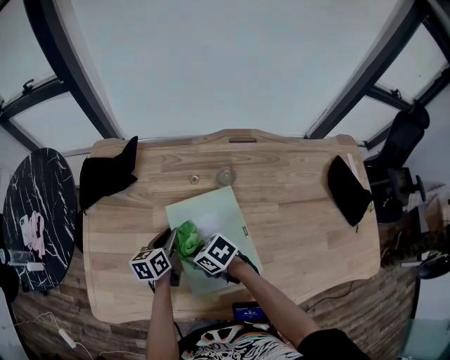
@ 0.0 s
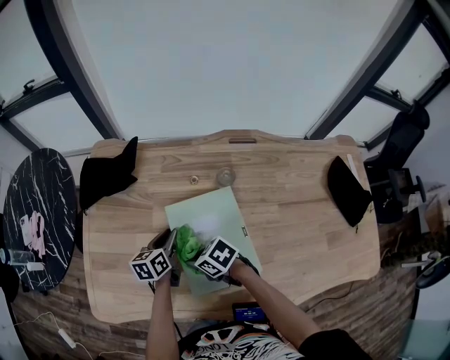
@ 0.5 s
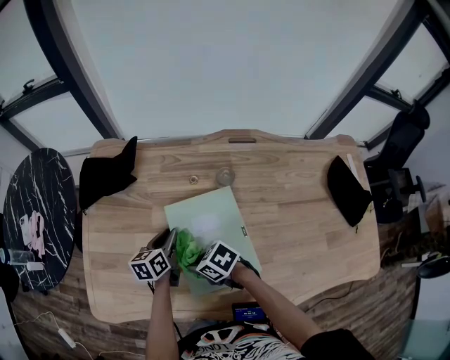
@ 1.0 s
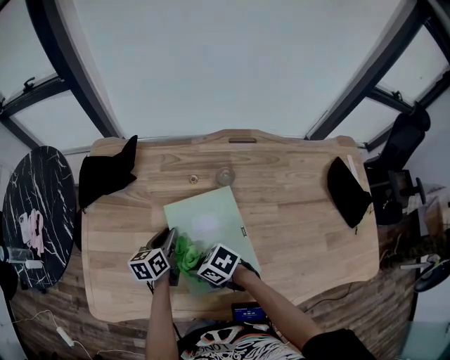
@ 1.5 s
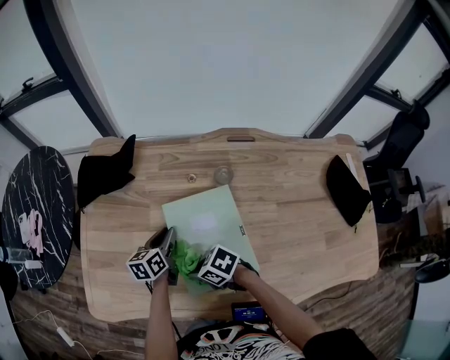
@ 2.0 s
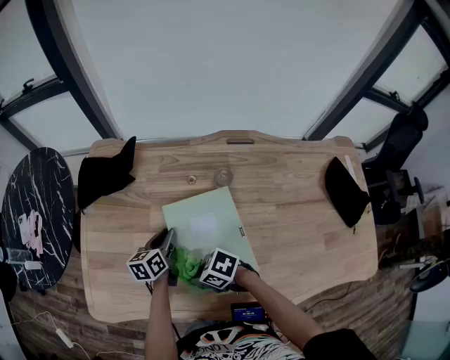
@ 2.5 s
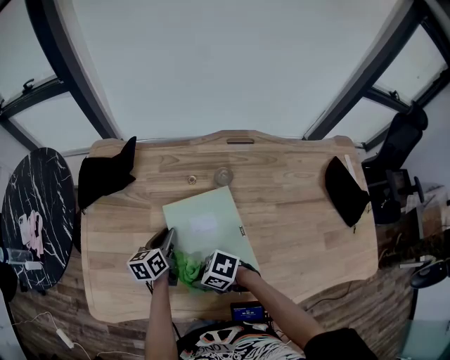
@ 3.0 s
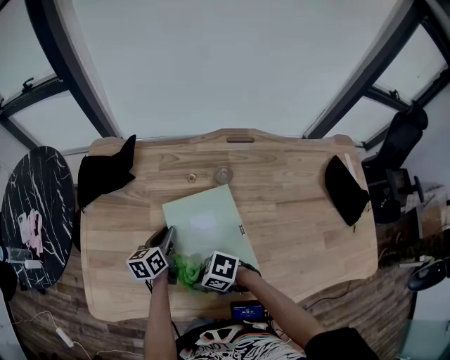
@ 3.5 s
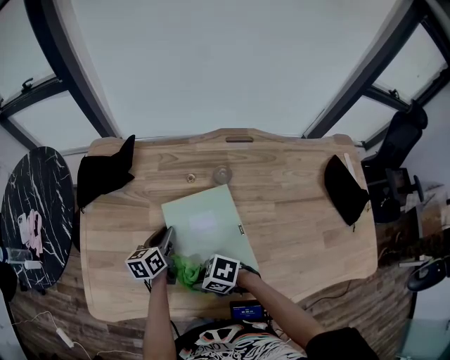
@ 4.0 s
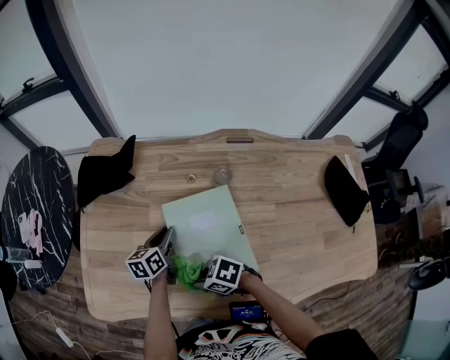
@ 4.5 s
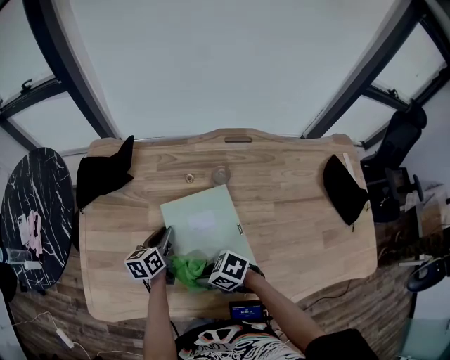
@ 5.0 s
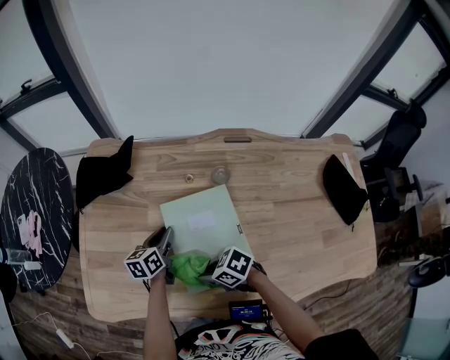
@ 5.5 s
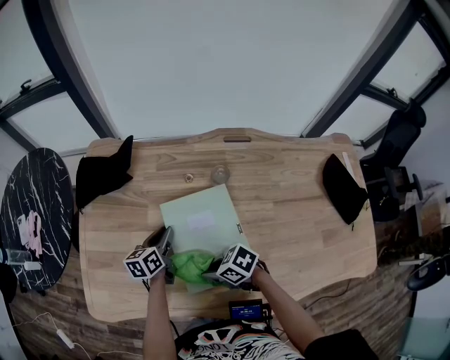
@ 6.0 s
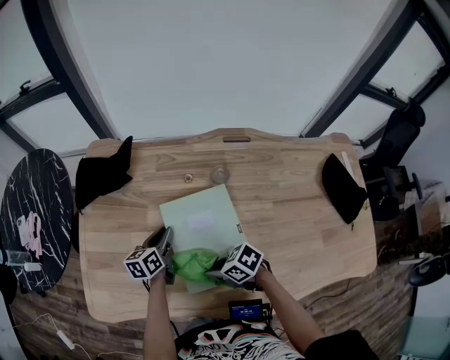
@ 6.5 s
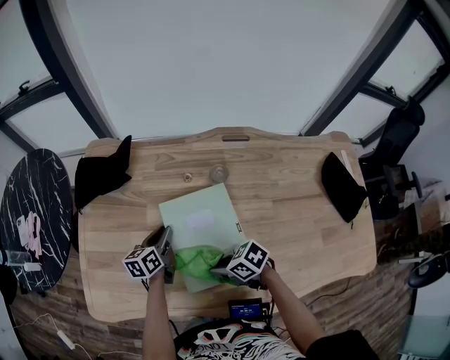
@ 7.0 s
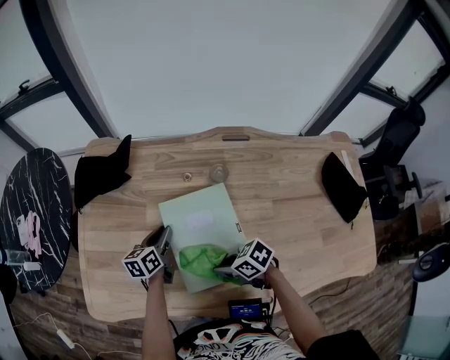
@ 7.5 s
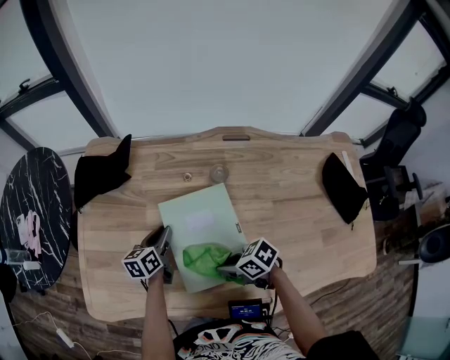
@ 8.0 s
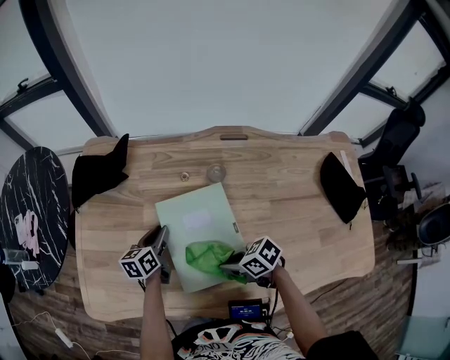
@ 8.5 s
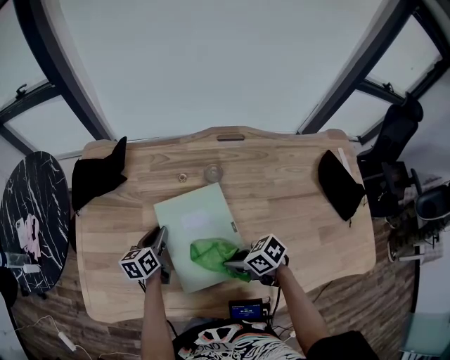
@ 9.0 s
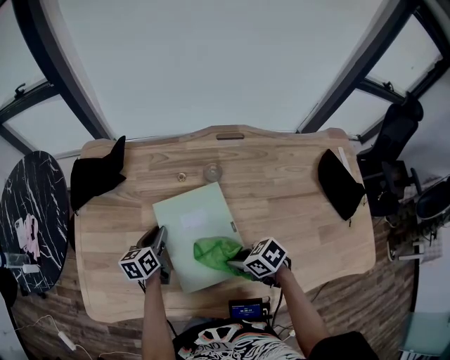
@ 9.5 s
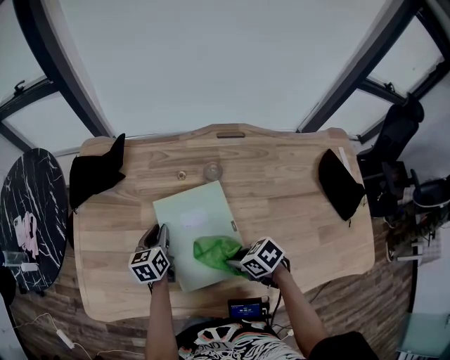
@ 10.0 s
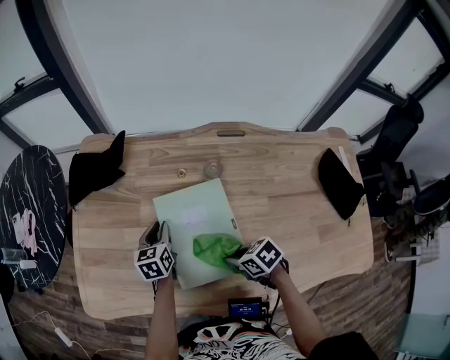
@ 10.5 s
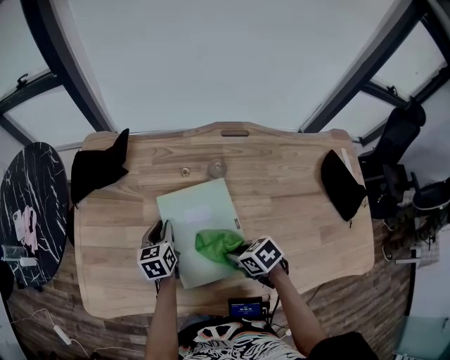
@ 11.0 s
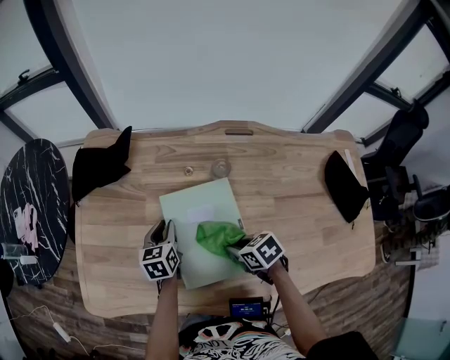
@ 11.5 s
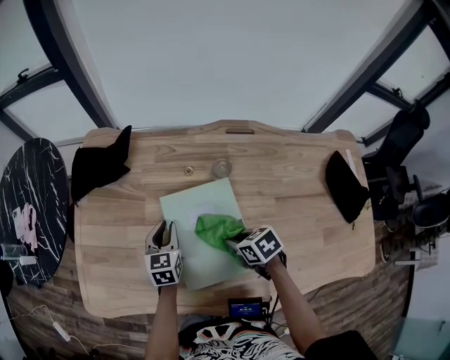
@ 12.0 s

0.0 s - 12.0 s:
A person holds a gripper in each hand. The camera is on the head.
0.0 s - 2.0 s: The right gripper moves about 5 cm.
2.0 s - 4.0 s: There are only small adjustments of the grippers.
4.0 s - 6.0 s: The right gripper ends up about 5 cm from where it was.
6.0 s - 8.0 s: The right gripper shifts by approximately 5 cm.
8.0 s - 10.0 s: The right gripper changes place by some 5 cm.
10.0 s - 12.0 s: The right gripper heads forward, covering about 5 cm.

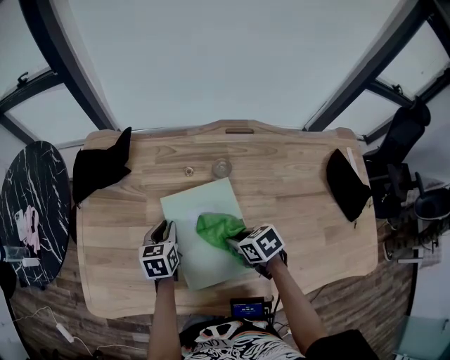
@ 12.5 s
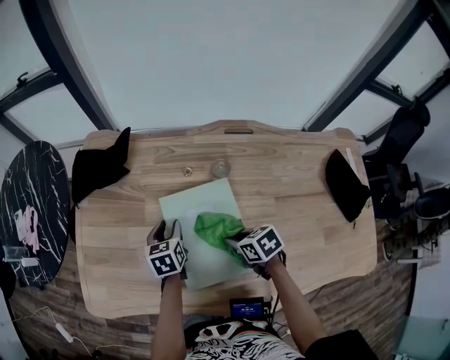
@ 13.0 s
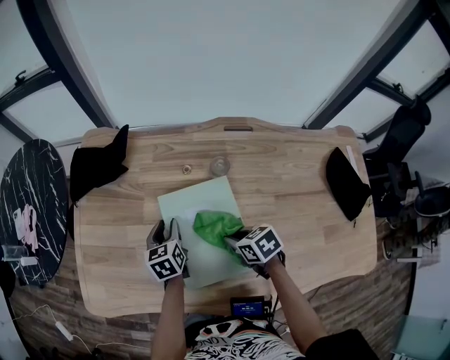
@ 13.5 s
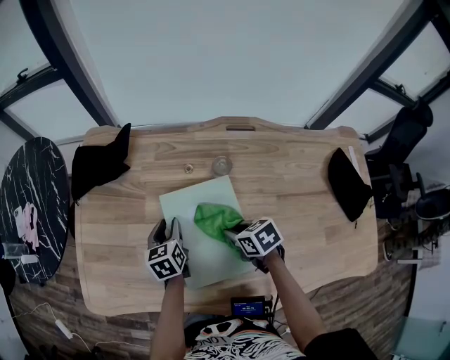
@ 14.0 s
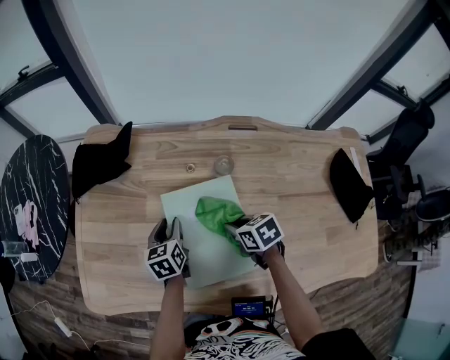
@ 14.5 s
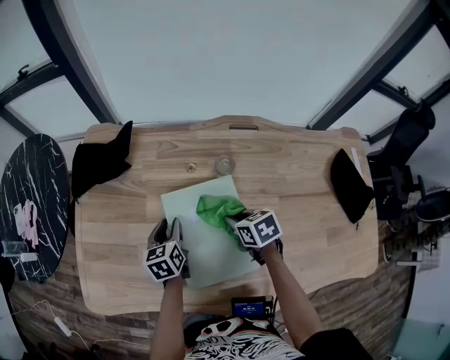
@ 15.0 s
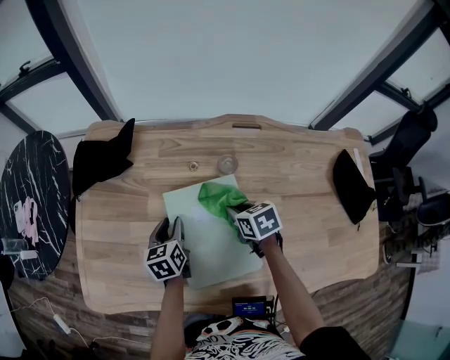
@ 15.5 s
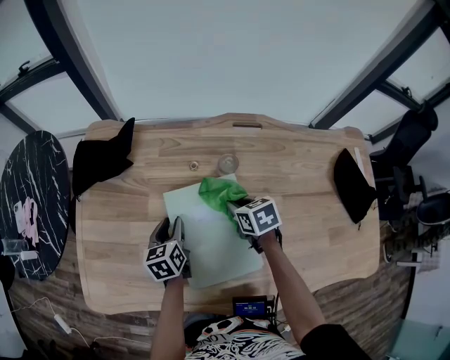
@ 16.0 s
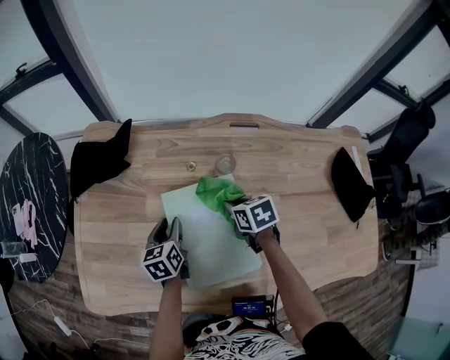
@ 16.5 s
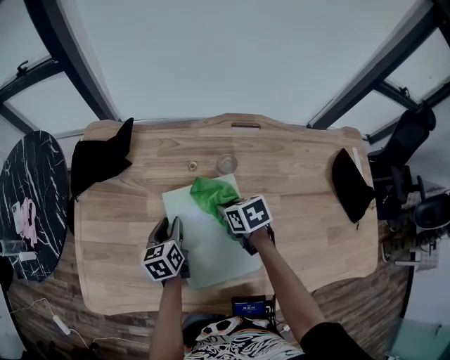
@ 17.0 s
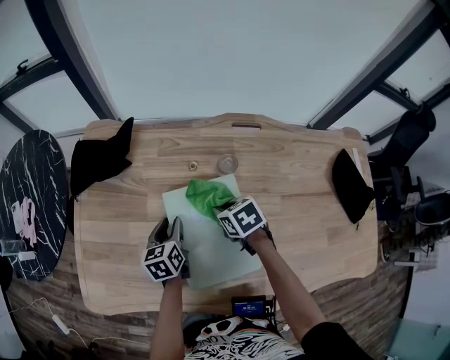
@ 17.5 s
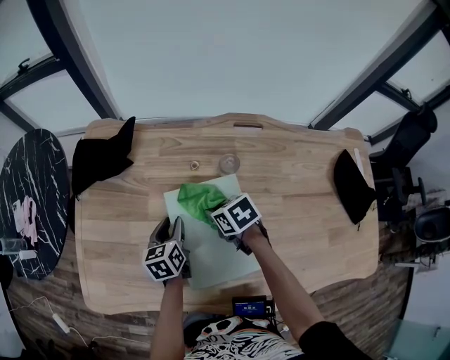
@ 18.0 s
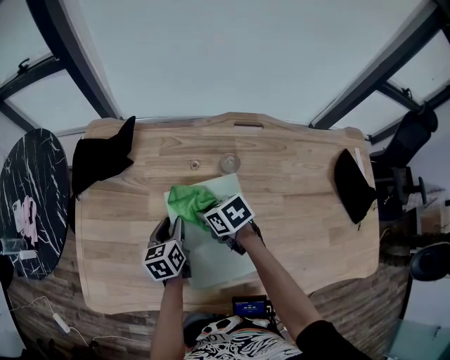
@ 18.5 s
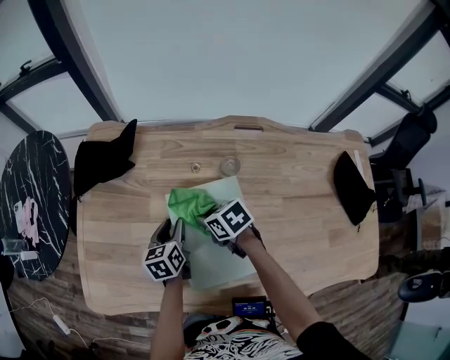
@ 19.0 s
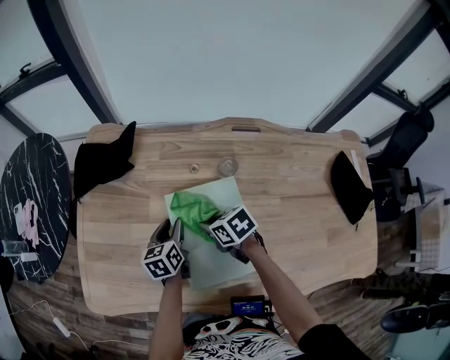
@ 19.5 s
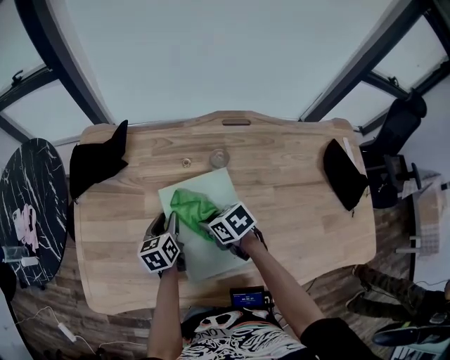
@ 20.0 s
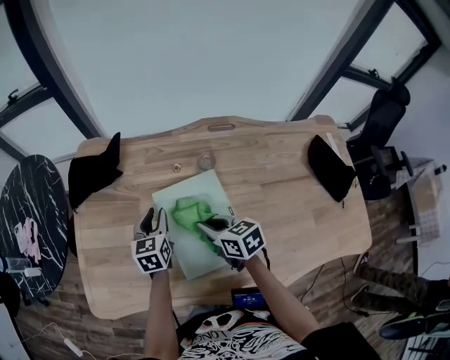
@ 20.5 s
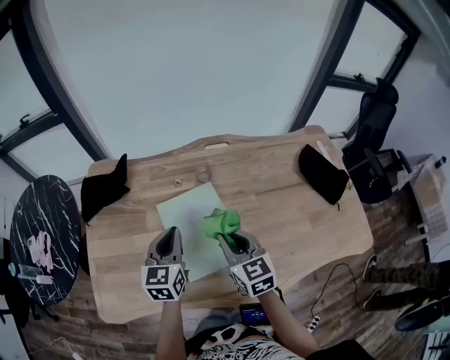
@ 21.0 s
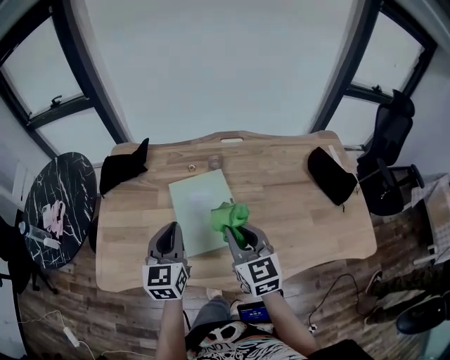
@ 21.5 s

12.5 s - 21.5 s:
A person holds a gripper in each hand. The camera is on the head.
12.5 s - 14.5 s: The grippers move only a little.
14.5 s - 17.0 s: The right gripper moves forward, approximately 5 cm.
17.0 s - 19.5 s: The right gripper is displaced to the left by approximately 10 cm.
19.5 s - 21.5 s: Both grippers move upward, some 20 cm. The left gripper changes its angle by roughly 40 degrees, and closes up, while the right gripper tilts its fingers some 30 degrees upward.

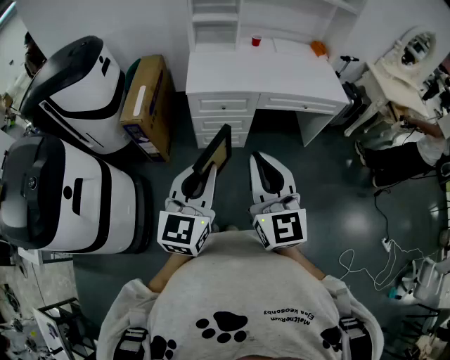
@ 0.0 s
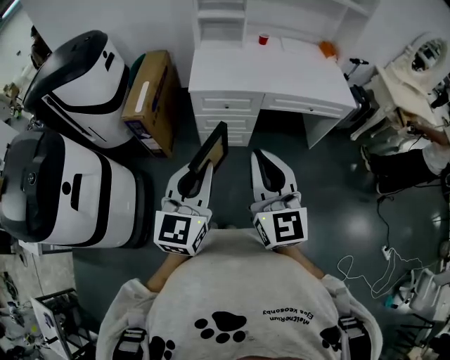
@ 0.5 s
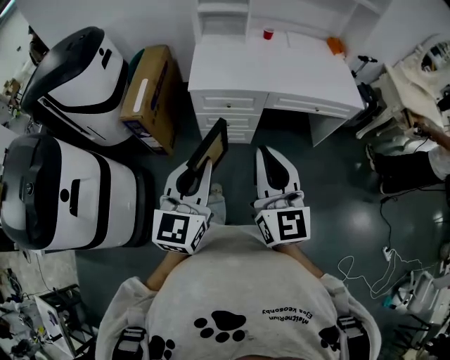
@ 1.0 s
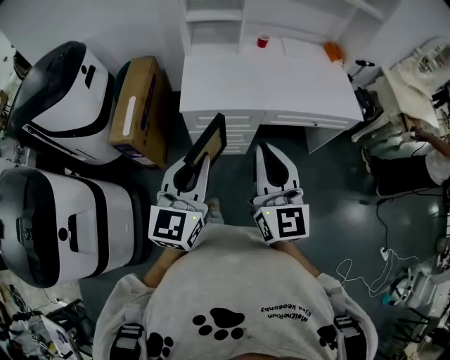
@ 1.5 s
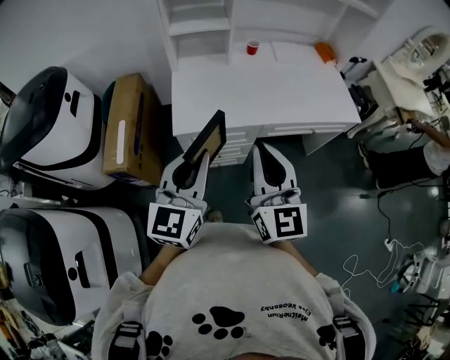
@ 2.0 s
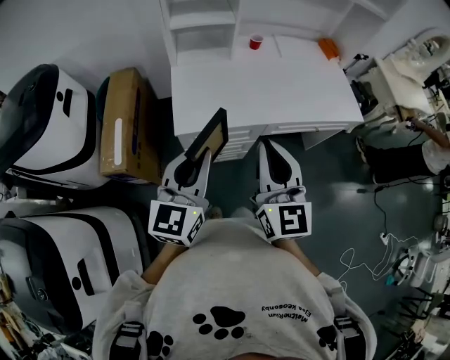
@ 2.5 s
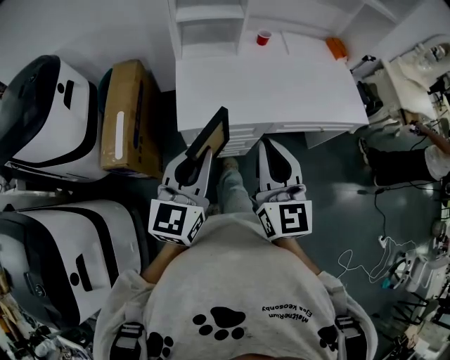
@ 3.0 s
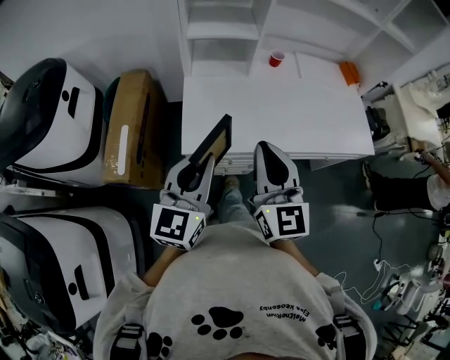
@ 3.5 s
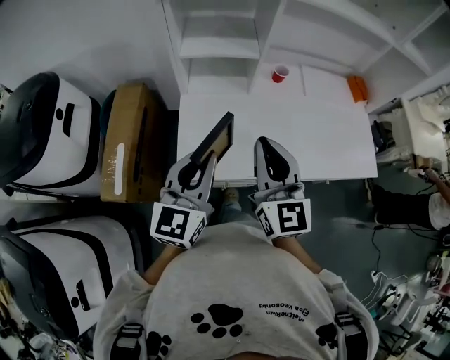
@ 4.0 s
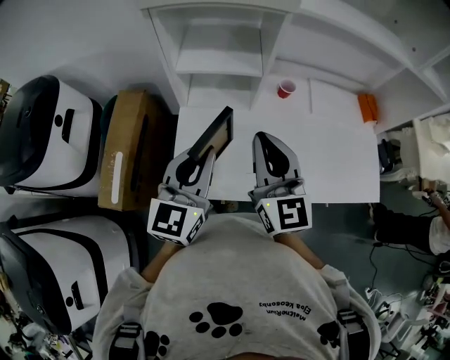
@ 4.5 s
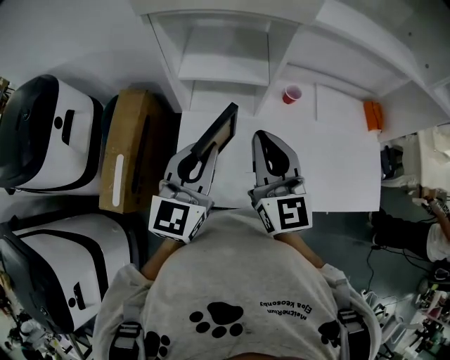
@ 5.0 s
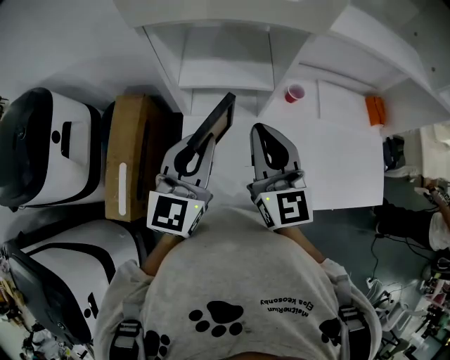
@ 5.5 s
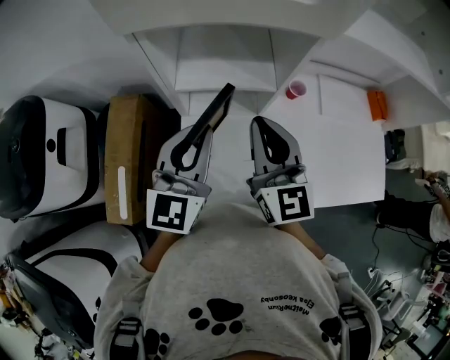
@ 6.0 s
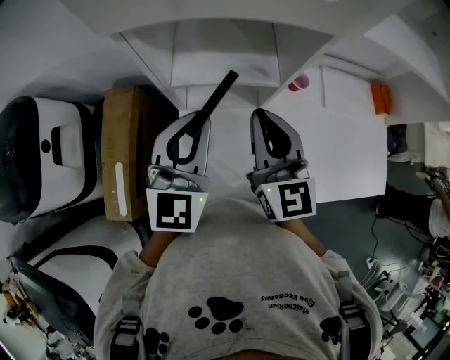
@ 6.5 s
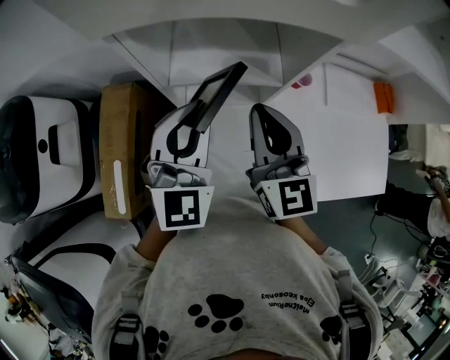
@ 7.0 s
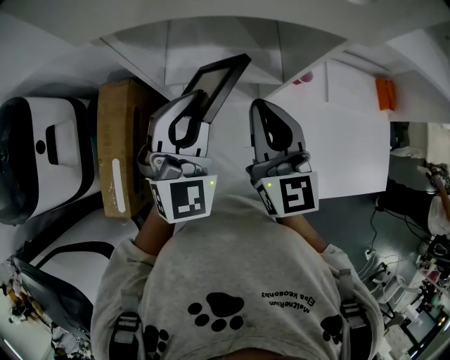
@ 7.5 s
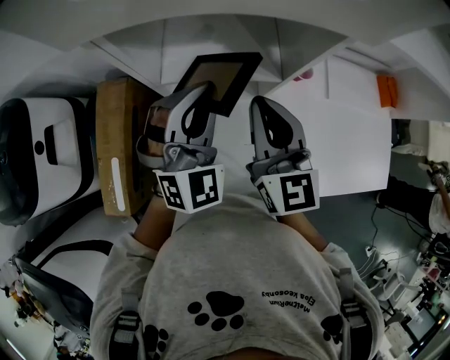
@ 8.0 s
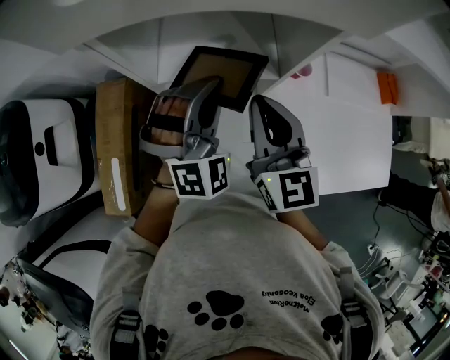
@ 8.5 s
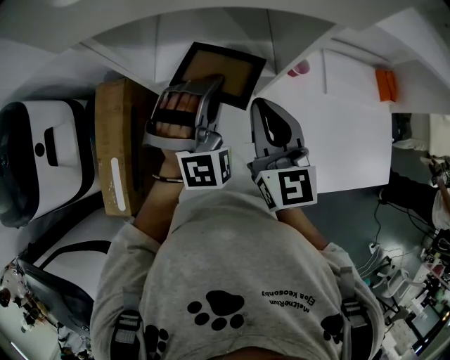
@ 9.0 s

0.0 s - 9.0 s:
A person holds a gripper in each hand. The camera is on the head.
0.0 s - 2.0 s: The grippers both shift forward by approximately 35 cm.
2.0 s - 4.5 s: The grippers both shift forward by approximately 35 cm.
4.5 s - 7.0 s: Both grippers move forward, about 20 cm. The left gripper rotates roughly 30 degrees.
7.0 s - 9.0 s: The left gripper goes approximately 10 cm downward and to the right, and rolls clockwise, seen from behind, by some 40 degrees.
